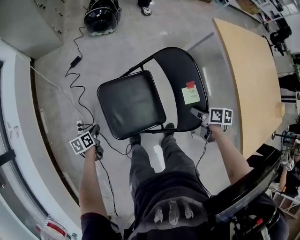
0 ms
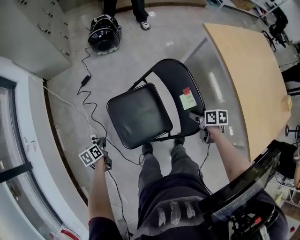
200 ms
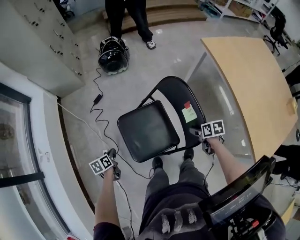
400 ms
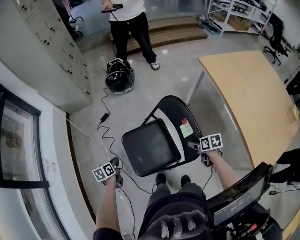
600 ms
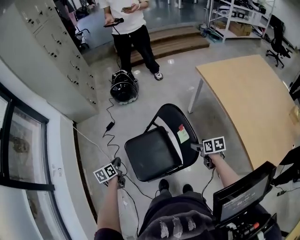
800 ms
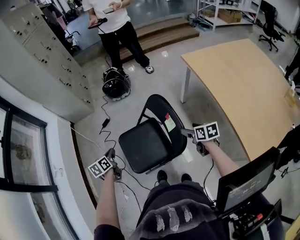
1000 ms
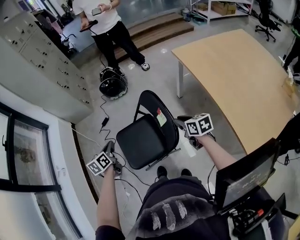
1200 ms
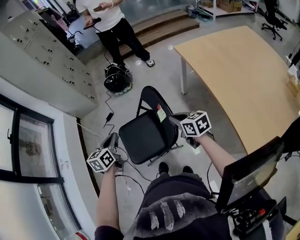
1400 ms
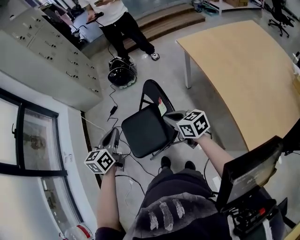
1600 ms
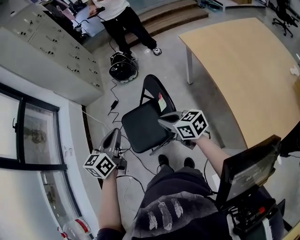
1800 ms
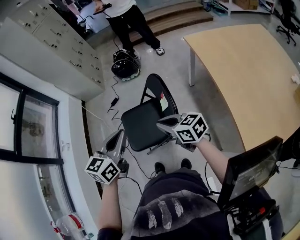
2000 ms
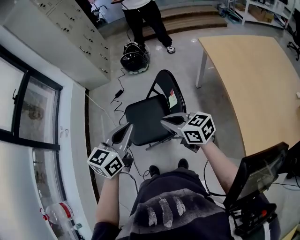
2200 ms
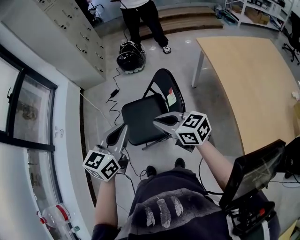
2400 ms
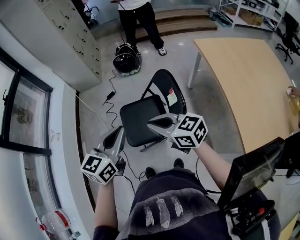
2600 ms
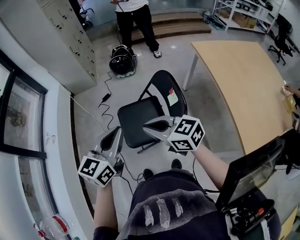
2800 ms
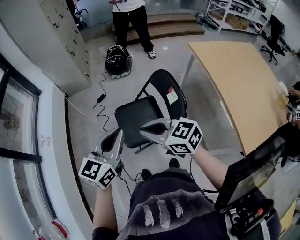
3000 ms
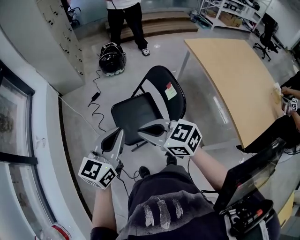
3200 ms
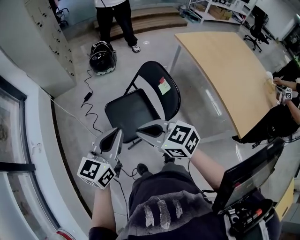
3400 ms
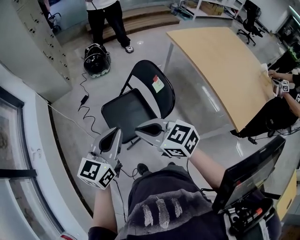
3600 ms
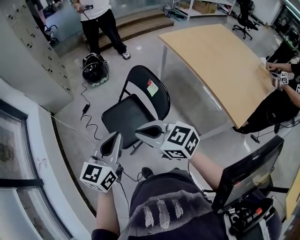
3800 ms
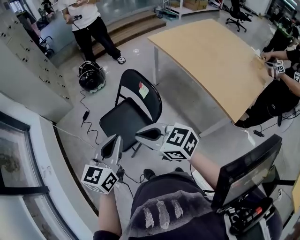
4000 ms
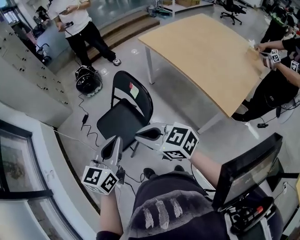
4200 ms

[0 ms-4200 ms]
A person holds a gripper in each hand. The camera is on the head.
0 ms to 1400 ms: The left gripper goes some 40 cm upward and to the right, and rotates approximately 40 degrees. The right gripper heads upward, covering about 20 cm, angles its fingers upward, by approximately 30 degrees, and closes up.
1400 ms to 2800 ms: The right gripper travels to the left and upward by about 25 cm, and changes its angle by about 30 degrees. The left gripper travels upward and backward by approximately 20 cm, and rotates about 20 degrees.
2800 ms to 4200 ms: The grippers both shift backward and to the right by approximately 15 cm.

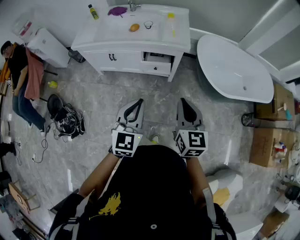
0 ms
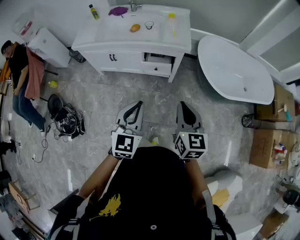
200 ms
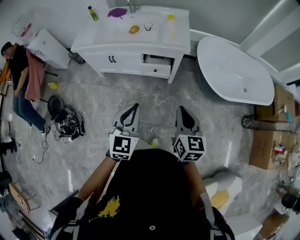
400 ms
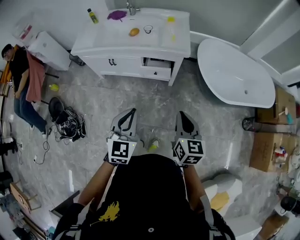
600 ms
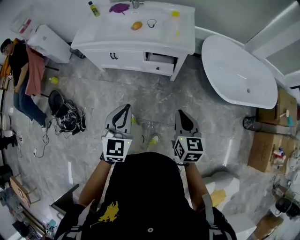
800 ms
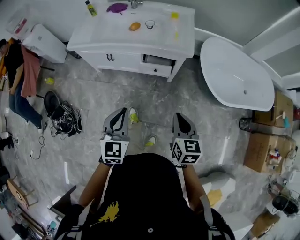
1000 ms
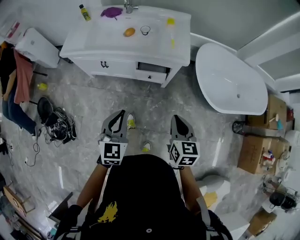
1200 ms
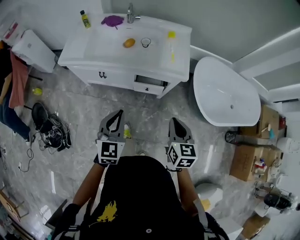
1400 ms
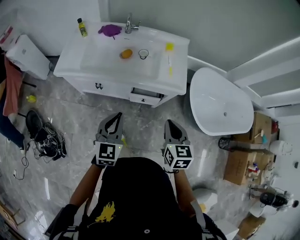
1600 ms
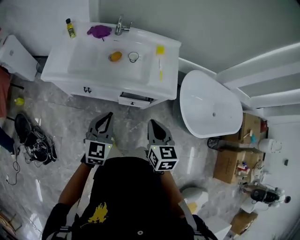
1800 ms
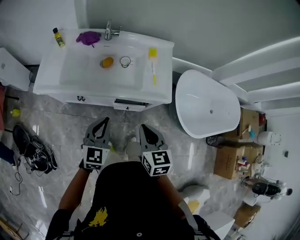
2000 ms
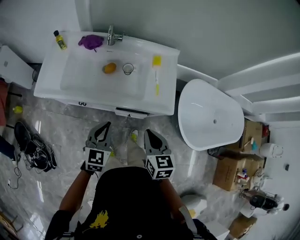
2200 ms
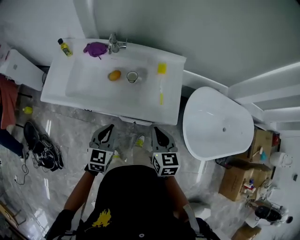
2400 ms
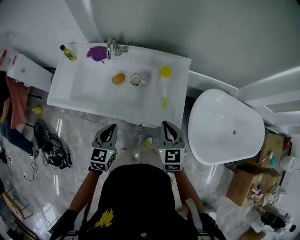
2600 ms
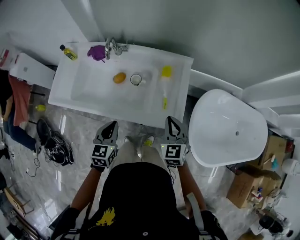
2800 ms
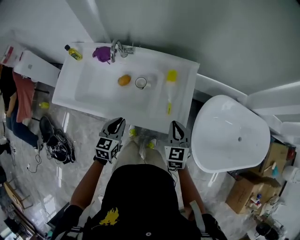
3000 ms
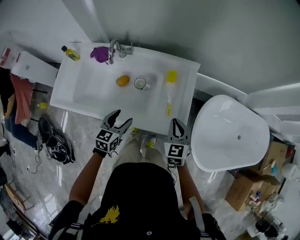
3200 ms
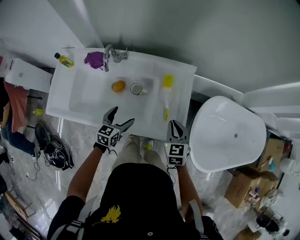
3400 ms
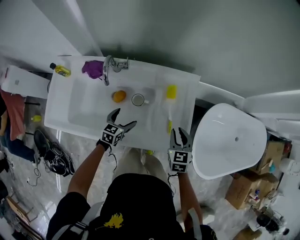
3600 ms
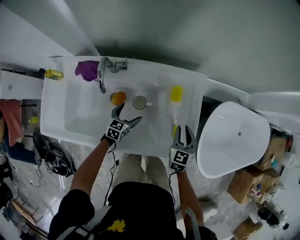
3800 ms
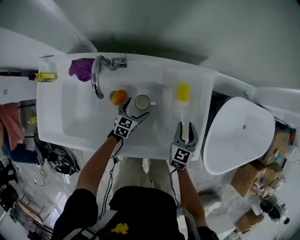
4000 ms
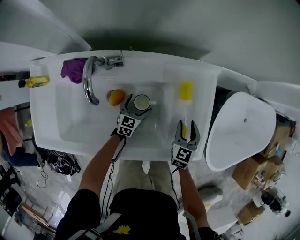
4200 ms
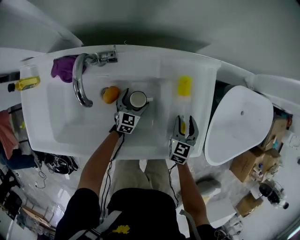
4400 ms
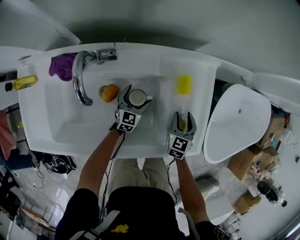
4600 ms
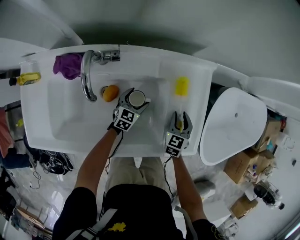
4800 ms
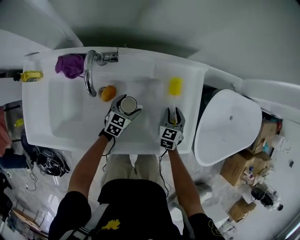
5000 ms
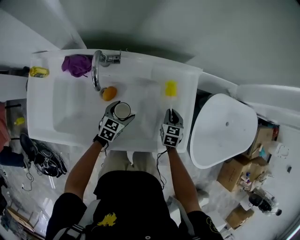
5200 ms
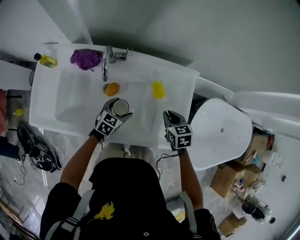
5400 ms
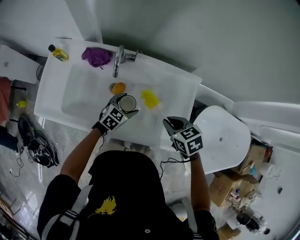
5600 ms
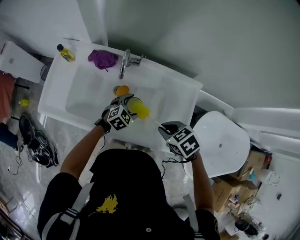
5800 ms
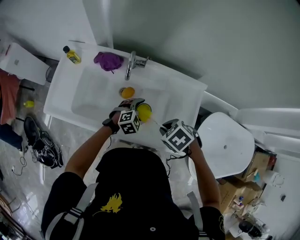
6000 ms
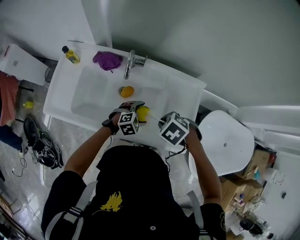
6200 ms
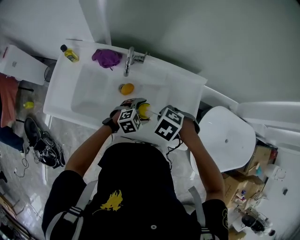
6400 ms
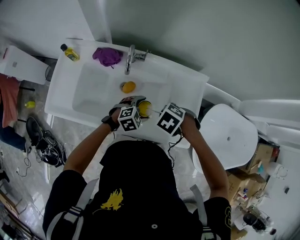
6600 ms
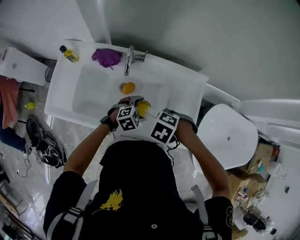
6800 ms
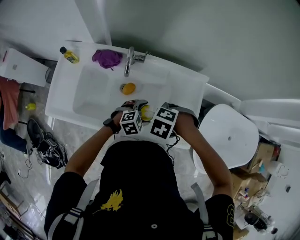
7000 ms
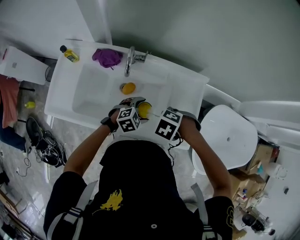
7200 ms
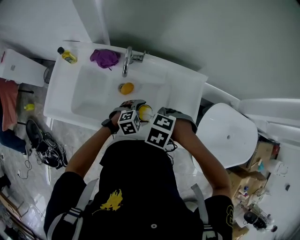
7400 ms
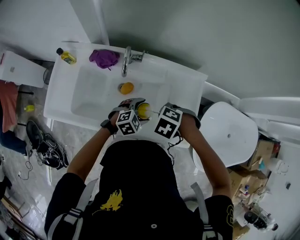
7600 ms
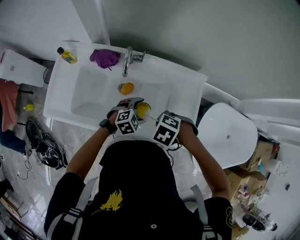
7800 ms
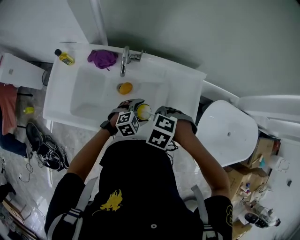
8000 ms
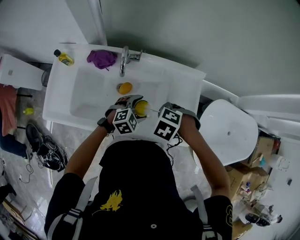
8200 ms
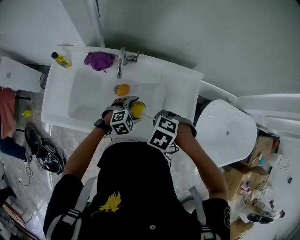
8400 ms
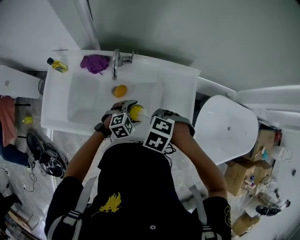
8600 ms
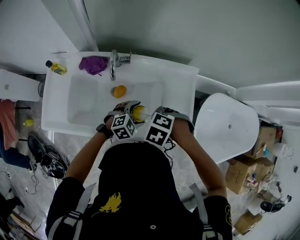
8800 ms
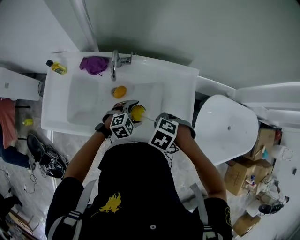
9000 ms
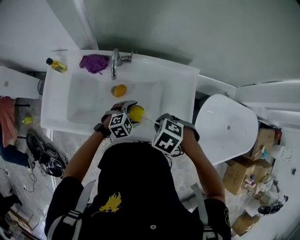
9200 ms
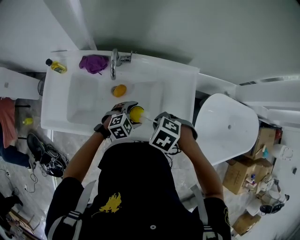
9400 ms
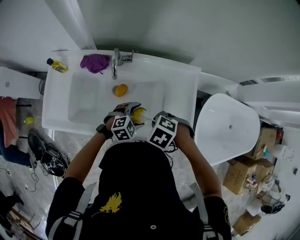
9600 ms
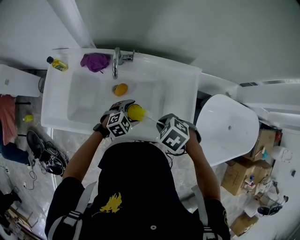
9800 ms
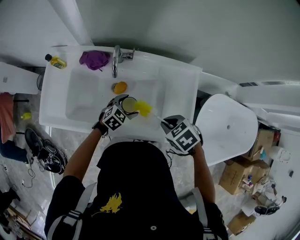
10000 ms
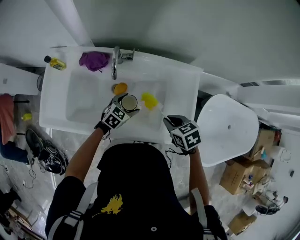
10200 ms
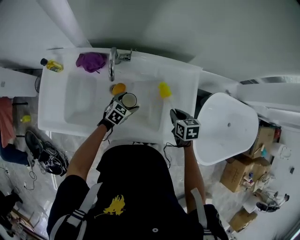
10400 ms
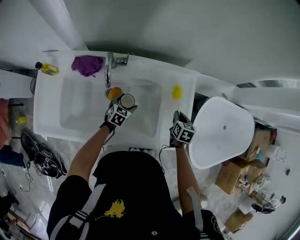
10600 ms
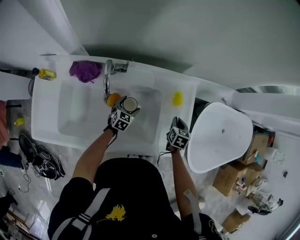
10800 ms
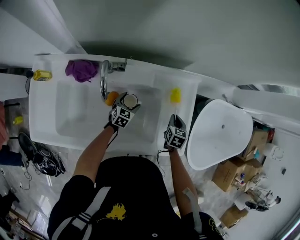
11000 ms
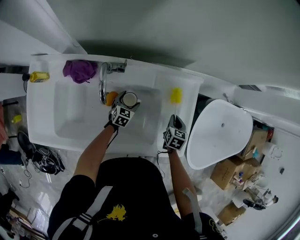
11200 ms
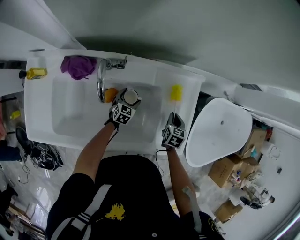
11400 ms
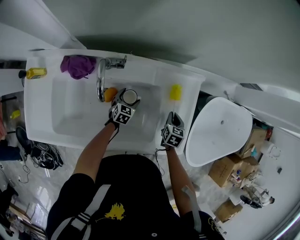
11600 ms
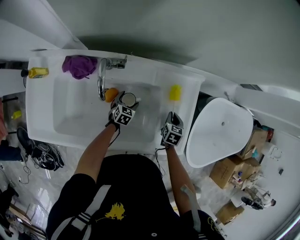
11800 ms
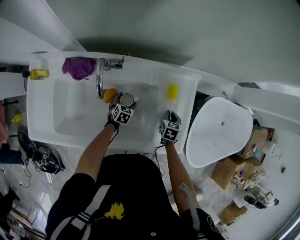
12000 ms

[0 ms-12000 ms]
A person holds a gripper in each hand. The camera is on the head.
0 ms to 1600 ms: The right gripper is displaced forward by roughly 25 cm. Meanwhile the left gripper shifts roughly 30 cm forward and to the left.
1600 ms to 3000 ms: The two grippers go about 30 cm forward. The left gripper turns by about 20 degrees.
3000 ms to 4400 ms: The left gripper goes some 40 cm downward and forward, and opens; the right gripper goes approximately 30 cm downward and forward, rotates roughly 30 degrees, and opens its fingers.
4400 ms to 6000 ms: The two grippers go roughly 20 cm upward. The right gripper tips its fingers downward by about 40 degrees, and closes its fingers, while the left gripper turns by some 40 degrees.
6000 ms to 7600 ms: The right gripper rotates roughly 20 degrees.
7600 ms to 9000 ms: There are only small adjustments of the grippers.
9000 ms to 10400 ms: The left gripper heads downward, covering about 10 cm, and turns by approximately 30 degrees. The right gripper changes place by roughly 15 cm, and rolls clockwise, seen from behind, by about 60 degrees.
10400 ms to 12000 ms: Both grippers move downward and forward, approximately 15 cm. The right gripper swivels some 30 degrees.

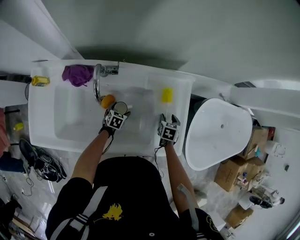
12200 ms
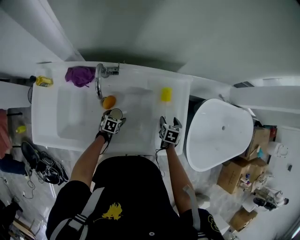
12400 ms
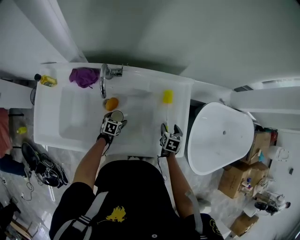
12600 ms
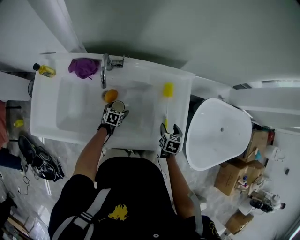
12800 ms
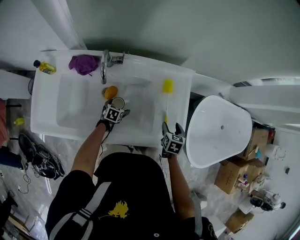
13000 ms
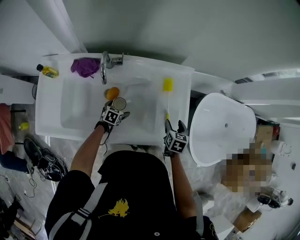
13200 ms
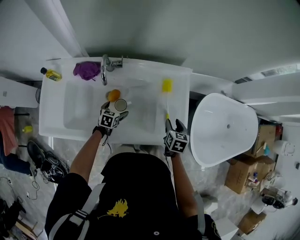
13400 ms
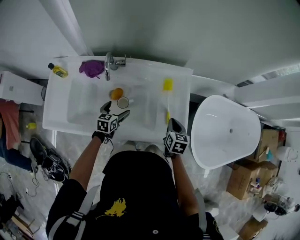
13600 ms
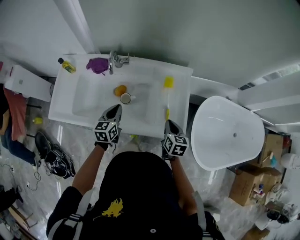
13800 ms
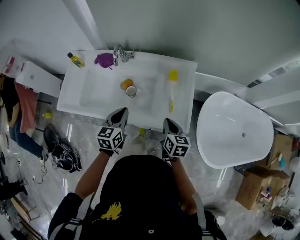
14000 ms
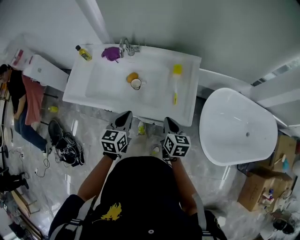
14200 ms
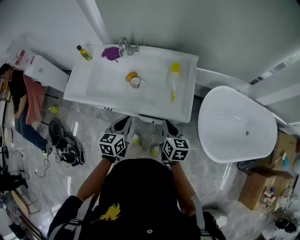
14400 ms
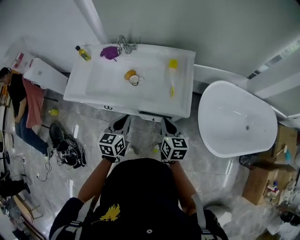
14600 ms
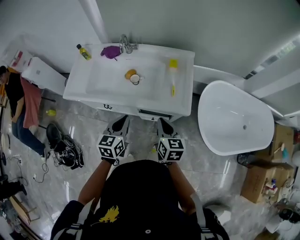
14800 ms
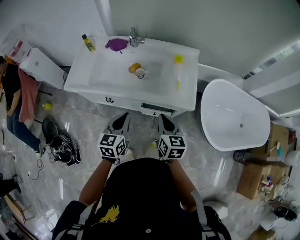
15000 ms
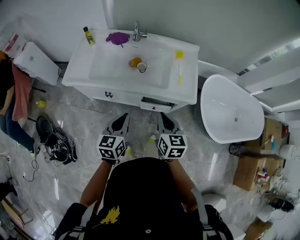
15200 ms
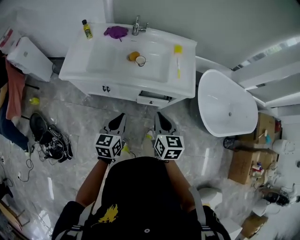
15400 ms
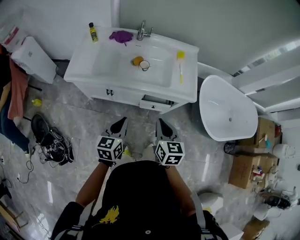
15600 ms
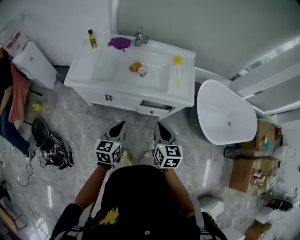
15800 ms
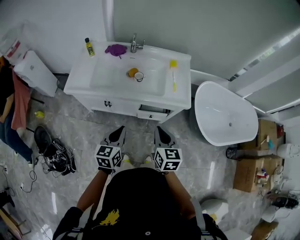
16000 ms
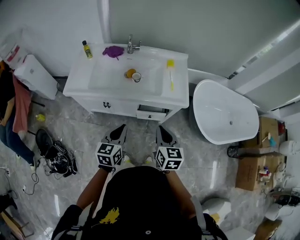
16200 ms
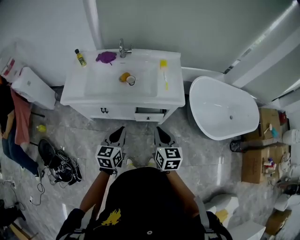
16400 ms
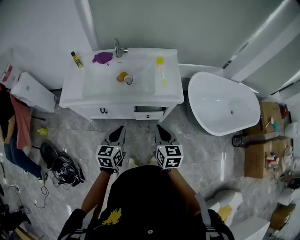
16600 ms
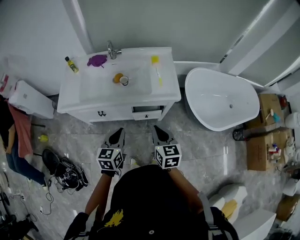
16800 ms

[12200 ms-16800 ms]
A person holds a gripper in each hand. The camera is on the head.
12200 ms to 13800 ms: The left gripper travels upward by some 30 cm, changes its angle by roughly 40 degrees, and closes up, while the right gripper moves upward, approximately 20 cm, rotates about 30 degrees, and closes.
13800 ms to 15200 ms: The left gripper travels backward by approximately 35 cm. The right gripper is displaced backward, to the left and upward by some 35 cm.
15200 ms to 16800 ms: The right gripper shifts about 10 cm backward. Meanwhile the left gripper changes place by approximately 5 cm.

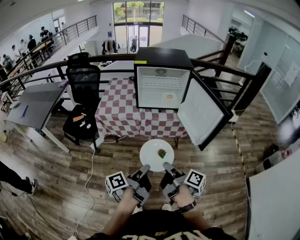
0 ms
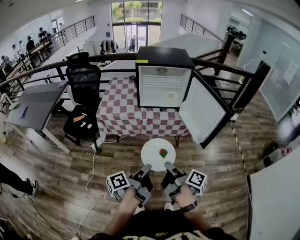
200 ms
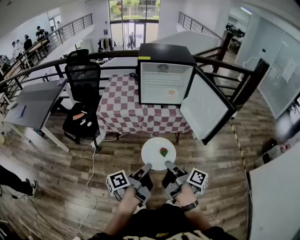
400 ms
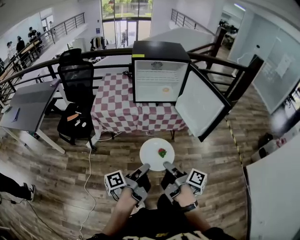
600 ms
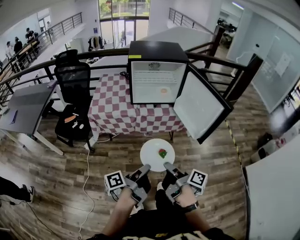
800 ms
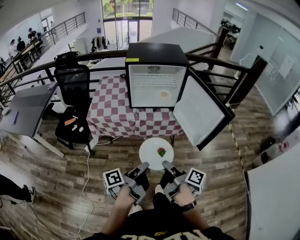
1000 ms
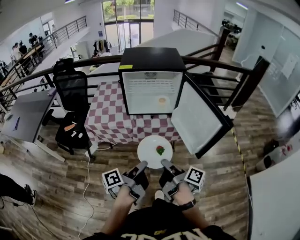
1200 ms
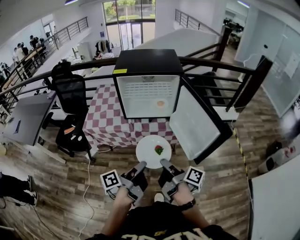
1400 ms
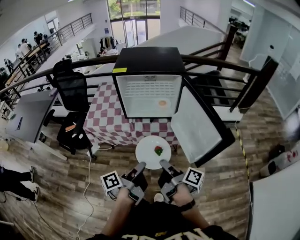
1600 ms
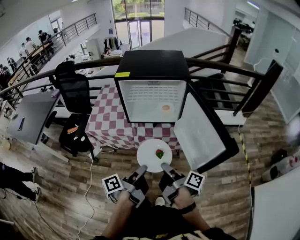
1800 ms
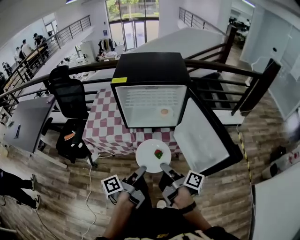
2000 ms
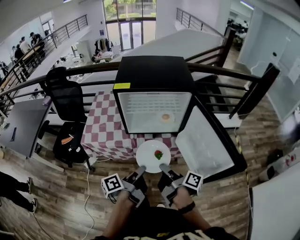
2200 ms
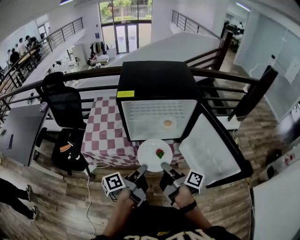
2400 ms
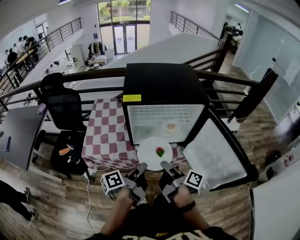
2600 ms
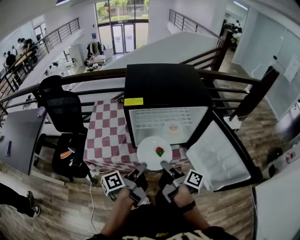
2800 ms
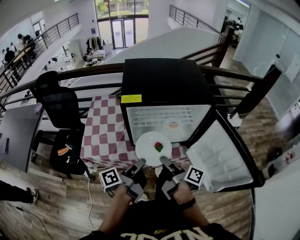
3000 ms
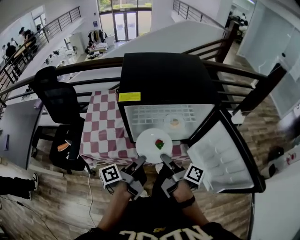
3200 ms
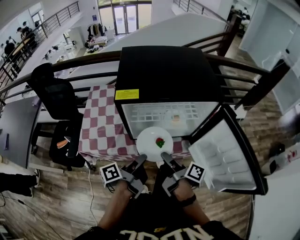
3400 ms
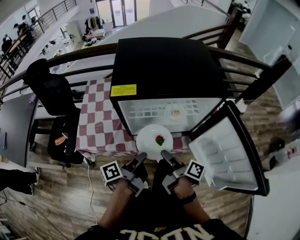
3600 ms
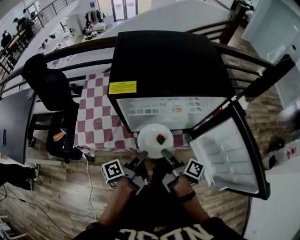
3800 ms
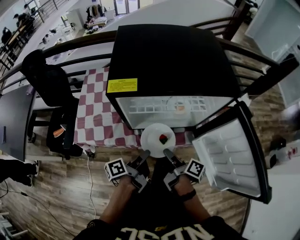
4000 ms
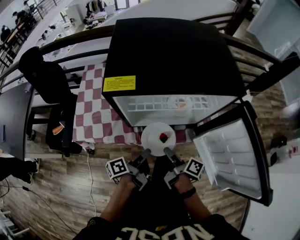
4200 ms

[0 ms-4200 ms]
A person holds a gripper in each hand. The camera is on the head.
0 ms to 1400 ms: Both grippers travel together forward, about 15 cm.
1400 ms to 2800 ms: The two grippers go roughly 25 cm forward and to the left.
2800 ms to 4200 ms: Both grippers move downward and forward, approximately 15 cm.
